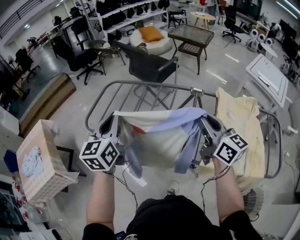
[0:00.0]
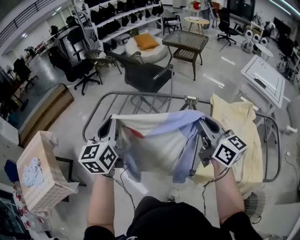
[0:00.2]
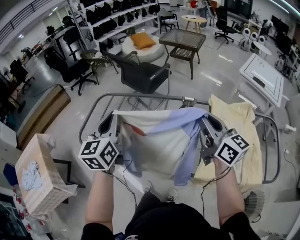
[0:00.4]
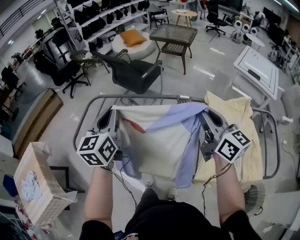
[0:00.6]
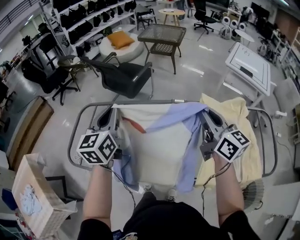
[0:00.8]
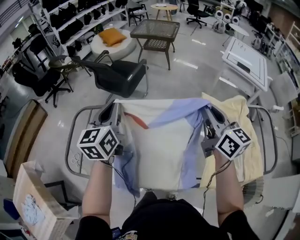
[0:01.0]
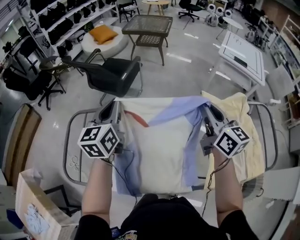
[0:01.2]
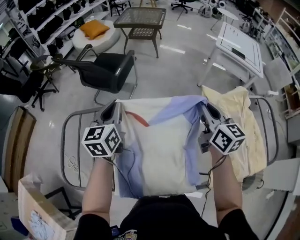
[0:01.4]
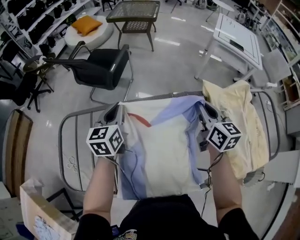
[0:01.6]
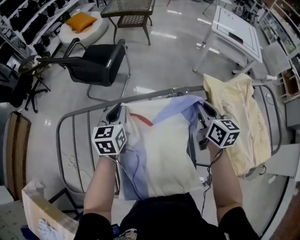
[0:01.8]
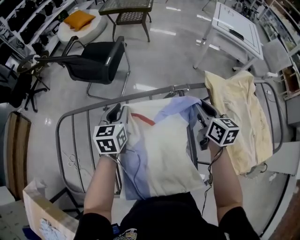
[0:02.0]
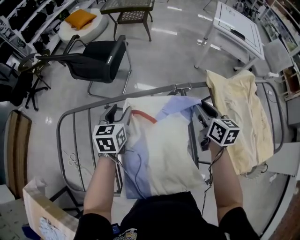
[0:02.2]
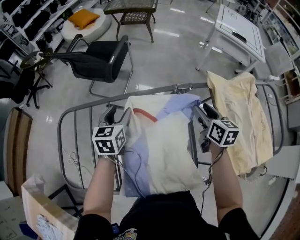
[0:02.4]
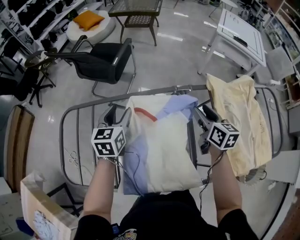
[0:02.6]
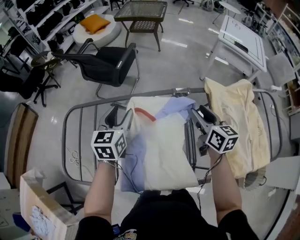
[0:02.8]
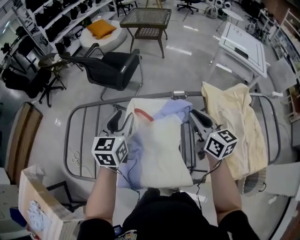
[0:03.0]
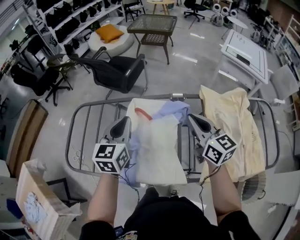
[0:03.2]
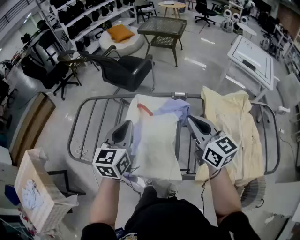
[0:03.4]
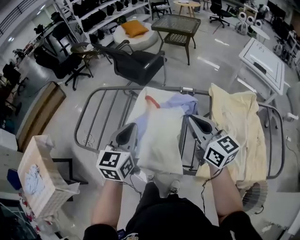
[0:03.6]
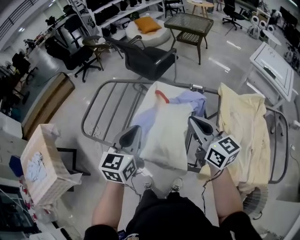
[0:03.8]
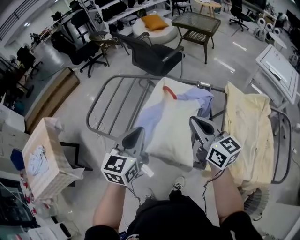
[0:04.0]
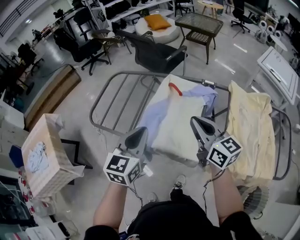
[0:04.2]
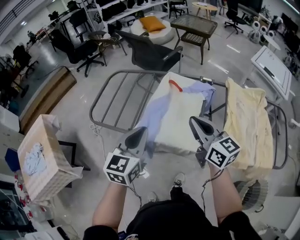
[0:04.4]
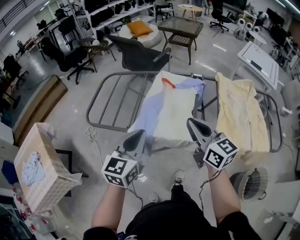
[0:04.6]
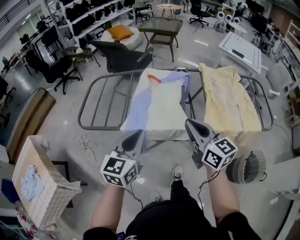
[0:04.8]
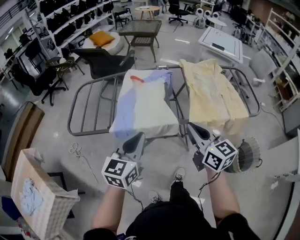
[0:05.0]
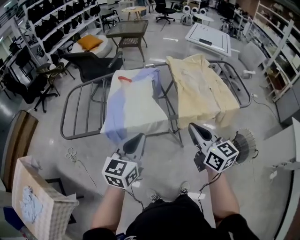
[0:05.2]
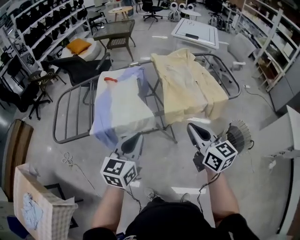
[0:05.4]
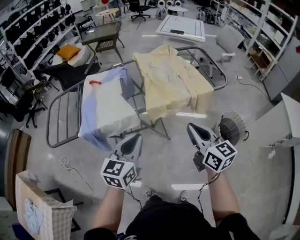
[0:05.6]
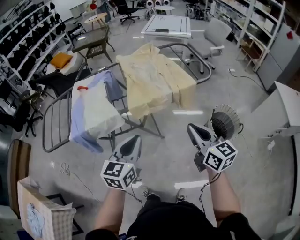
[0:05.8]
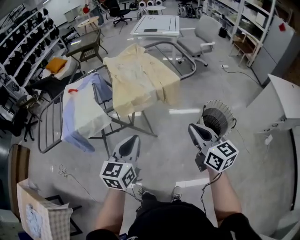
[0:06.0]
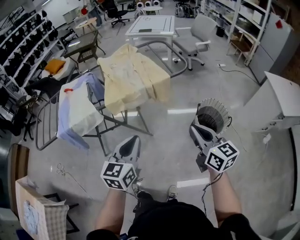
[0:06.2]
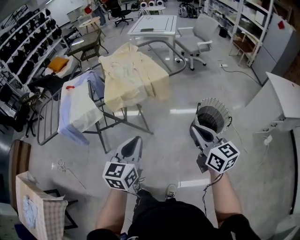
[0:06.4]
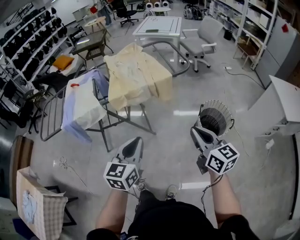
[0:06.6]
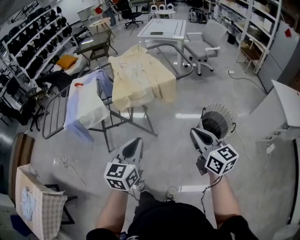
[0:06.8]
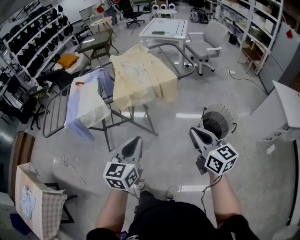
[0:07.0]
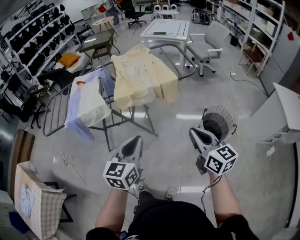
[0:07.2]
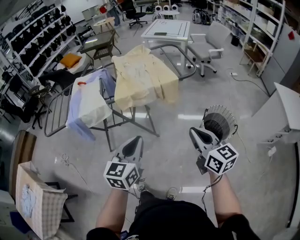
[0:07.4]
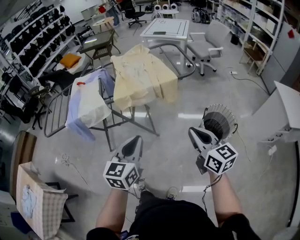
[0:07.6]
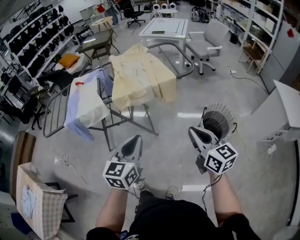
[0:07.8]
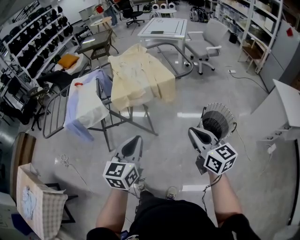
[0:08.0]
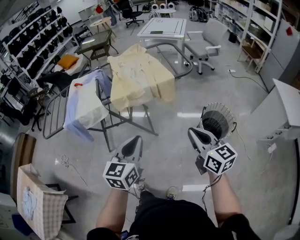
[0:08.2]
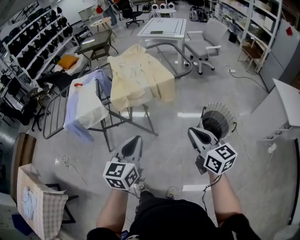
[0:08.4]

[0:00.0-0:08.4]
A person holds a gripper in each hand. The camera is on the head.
0:00.0 to 0:01.4: The right gripper moves approximately 25 cm, and turns by about 30 degrees. Meanwhile the left gripper ends up some 35 cm from where it was, and changes its angle by some 30 degrees.
0:01.4 to 0:02.8: The left gripper moves downward, roughly 5 cm, and opens. The right gripper moves downward, approximately 10 cm, and opens its fingers.
0:02.8 to 0:04.2: The left gripper travels backward by about 30 cm, and closes its fingers, while the right gripper moves backward, to the left and upward, about 25 cm, rotates roughly 40 degrees, and closes its fingers.
0:04.2 to 0:05.6: The right gripper shifts by about 40 cm, and changes its angle by some 40 degrees. Meanwhile the left gripper ends up about 30 cm from where it was, and swivels approximately 40 degrees.
0:05.6 to 0:07.0: The grippers both shift to the right and backward by some 30 cm.
0:07.0 to 0:08.4: The grippers make only small movements.

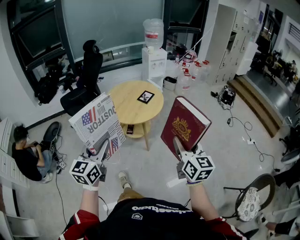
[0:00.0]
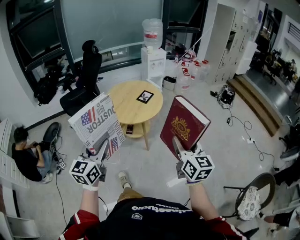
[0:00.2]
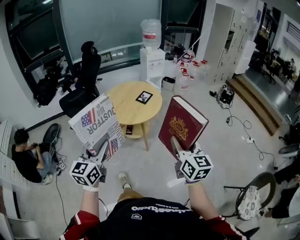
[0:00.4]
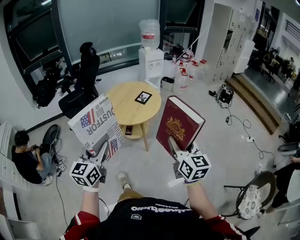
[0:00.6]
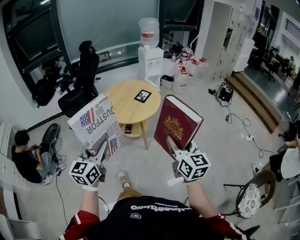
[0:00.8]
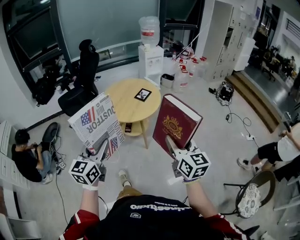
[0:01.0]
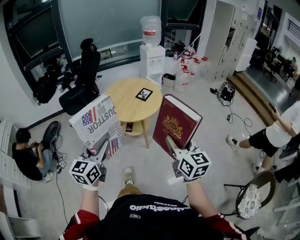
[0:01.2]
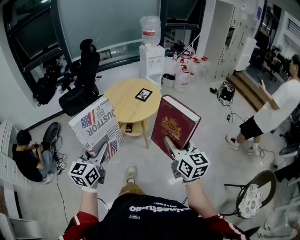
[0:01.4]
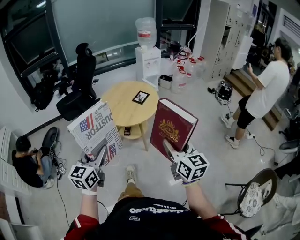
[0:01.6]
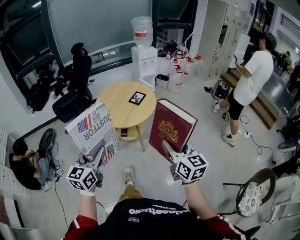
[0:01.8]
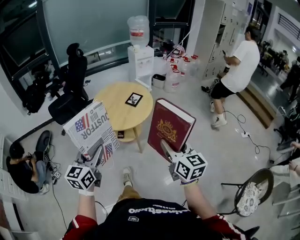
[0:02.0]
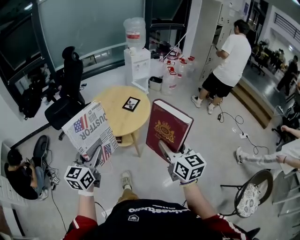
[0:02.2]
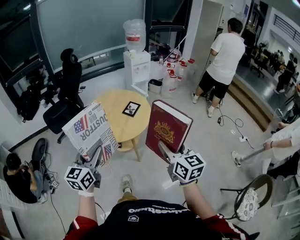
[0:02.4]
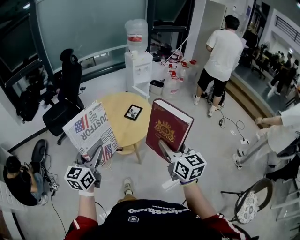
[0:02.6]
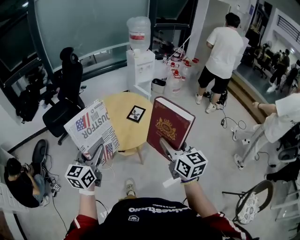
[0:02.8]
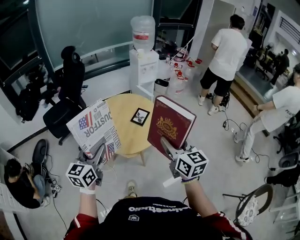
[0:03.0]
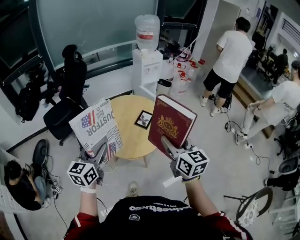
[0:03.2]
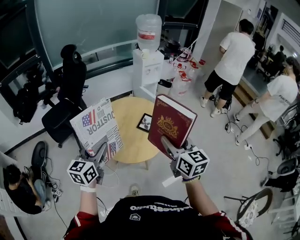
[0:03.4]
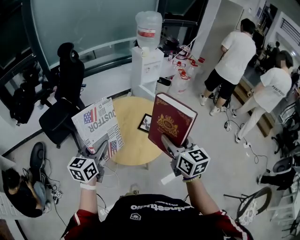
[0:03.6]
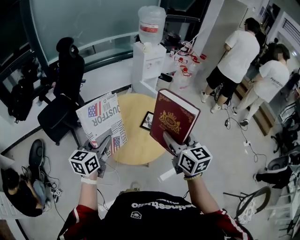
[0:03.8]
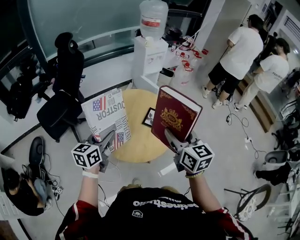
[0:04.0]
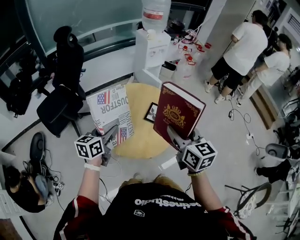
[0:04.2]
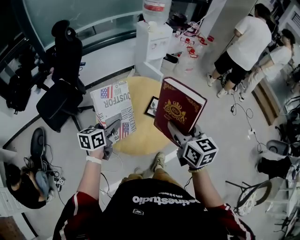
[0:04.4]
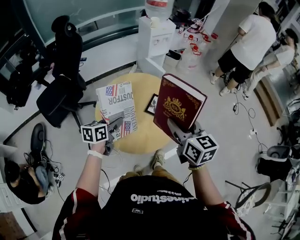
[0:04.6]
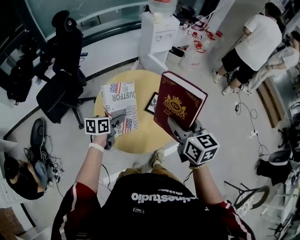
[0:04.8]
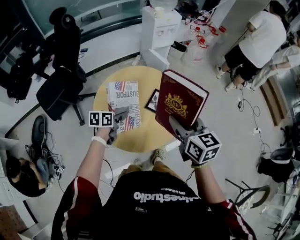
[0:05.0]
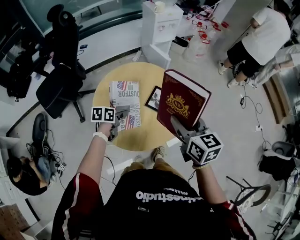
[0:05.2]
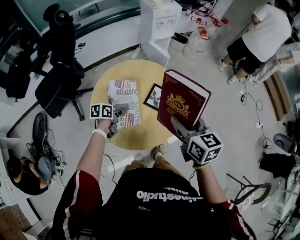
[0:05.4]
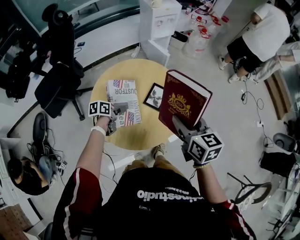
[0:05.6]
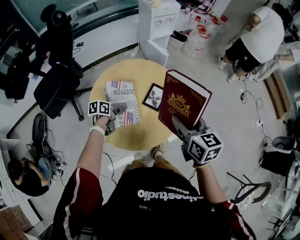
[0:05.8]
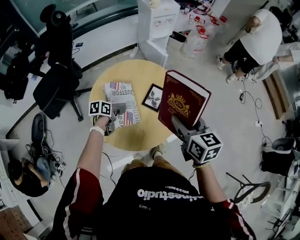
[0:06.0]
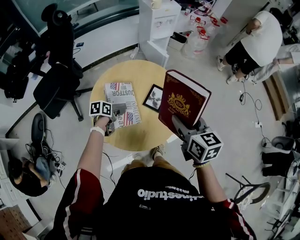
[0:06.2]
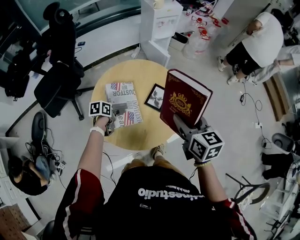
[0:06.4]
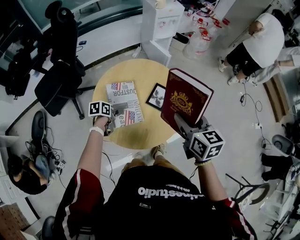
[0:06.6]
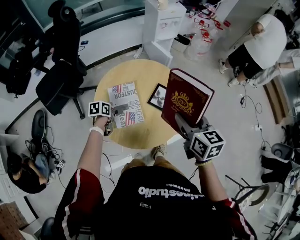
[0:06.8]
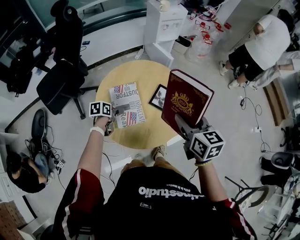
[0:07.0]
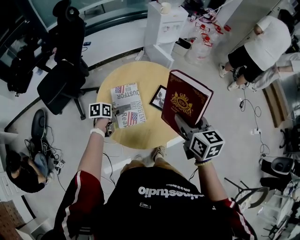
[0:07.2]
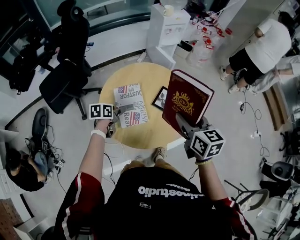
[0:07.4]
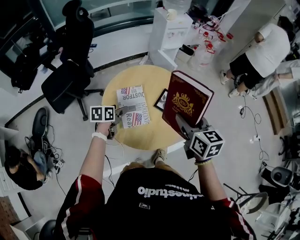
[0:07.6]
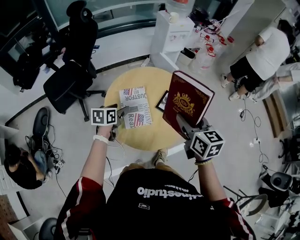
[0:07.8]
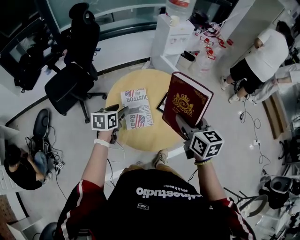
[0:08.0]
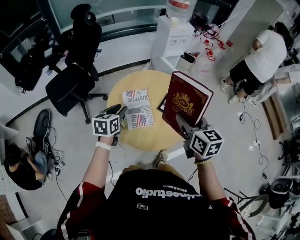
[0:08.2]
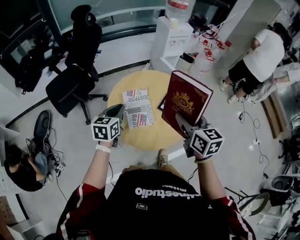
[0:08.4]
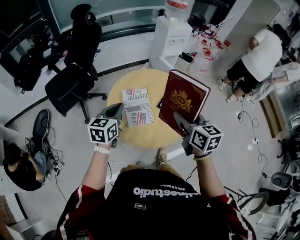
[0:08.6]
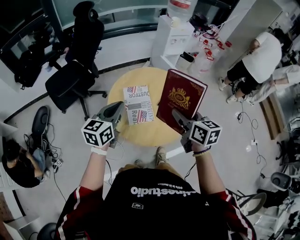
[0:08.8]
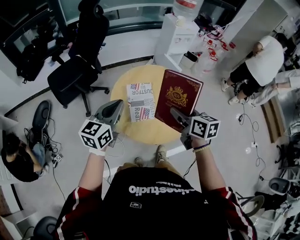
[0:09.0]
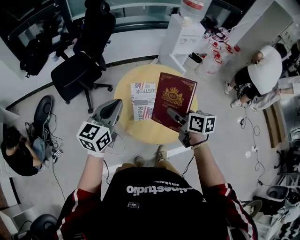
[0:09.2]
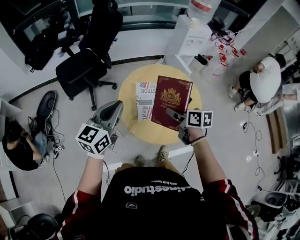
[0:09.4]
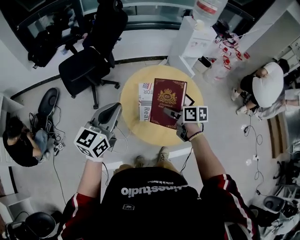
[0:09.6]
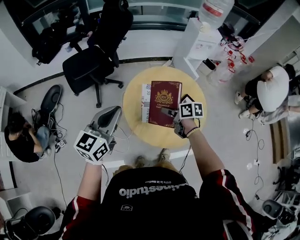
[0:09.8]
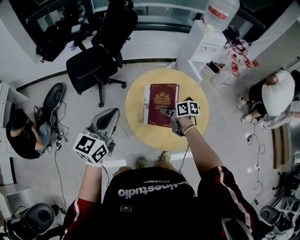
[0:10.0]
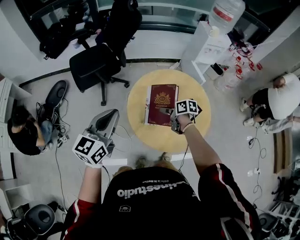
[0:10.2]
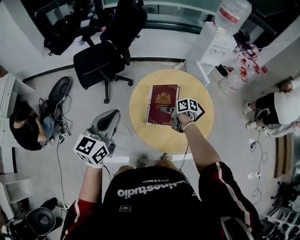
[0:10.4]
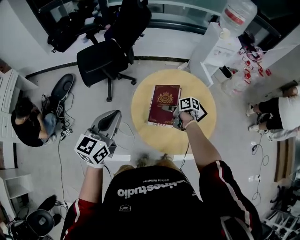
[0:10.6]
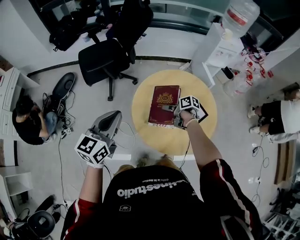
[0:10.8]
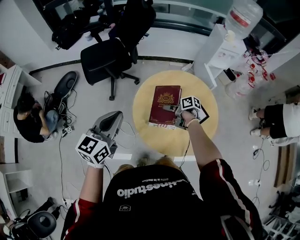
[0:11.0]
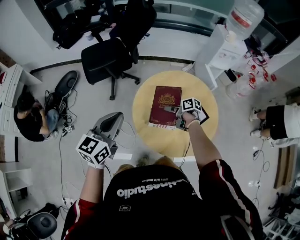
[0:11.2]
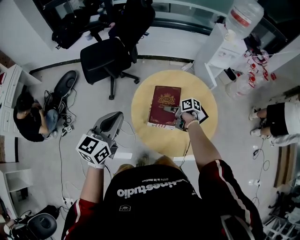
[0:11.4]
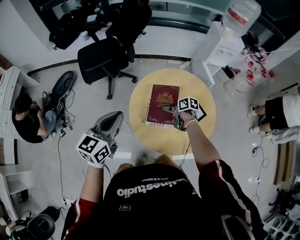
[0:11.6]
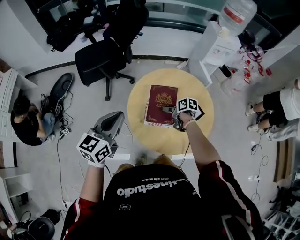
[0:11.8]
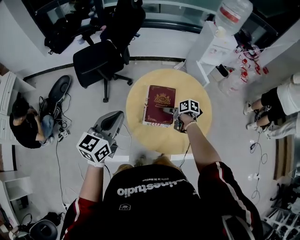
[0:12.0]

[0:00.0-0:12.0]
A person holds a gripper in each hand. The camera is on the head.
0:00.0 to 0:01.6: The grippers stay close to where they were, moving slightly.
0:01.6 to 0:03.0: Both grippers move forward, some 25 cm.
0:03.0 to 0:04.4: The left gripper heads forward and downward, covering about 30 cm, and swivels roughly 30 degrees. The right gripper goes approximately 20 cm forward and to the left.
0:04.4 to 0:06.0: The right gripper goes about 10 cm downward and forward, while the left gripper travels downward and forward by roughly 25 cm, and swivels some 30 degrees.
0:06.0 to 0:07.6: The left gripper moves upward and to the left, roughly 10 cm. The right gripper travels to the left by roughly 5 cm.
0:07.6 to 0:09.0: The left gripper heads upward and backward, covering approximately 25 cm, points its fingers some 30 degrees further upward, and closes up. Meanwhile the right gripper goes approximately 5 cm to the left.
0:09.0 to 0:10.4: The left gripper moves approximately 10 cm, while the right gripper goes some 20 cm downward, and swivels about 40 degrees.
0:10.4 to 0:12.0: The right gripper shifts approximately 5 cm to the right, and opens up.

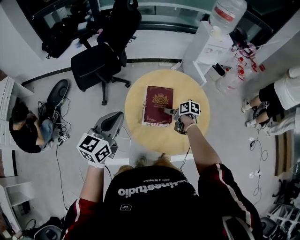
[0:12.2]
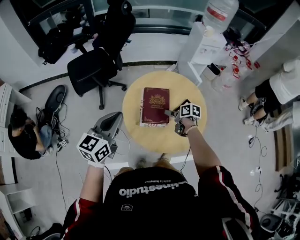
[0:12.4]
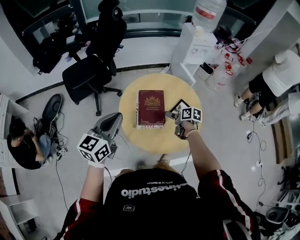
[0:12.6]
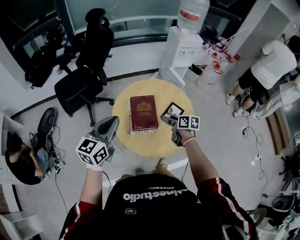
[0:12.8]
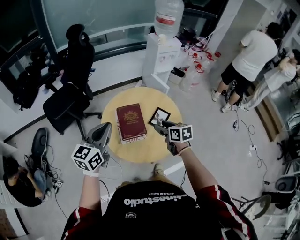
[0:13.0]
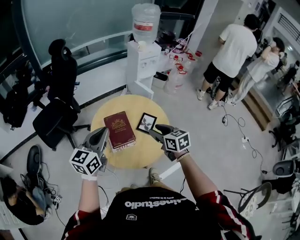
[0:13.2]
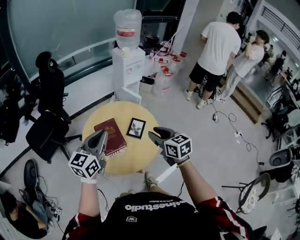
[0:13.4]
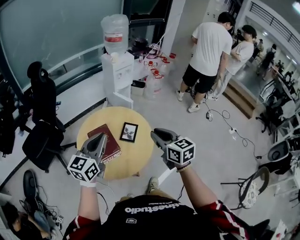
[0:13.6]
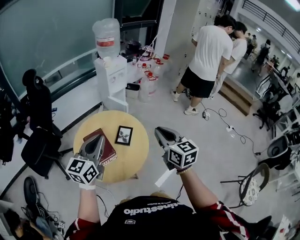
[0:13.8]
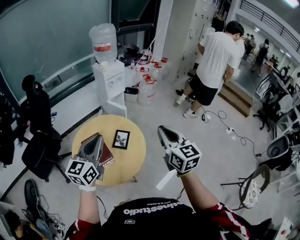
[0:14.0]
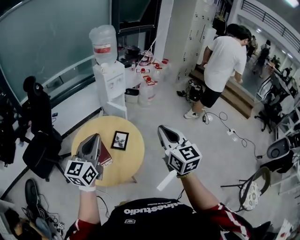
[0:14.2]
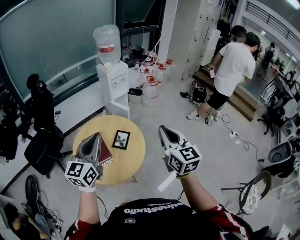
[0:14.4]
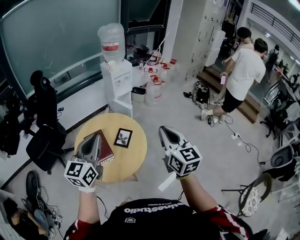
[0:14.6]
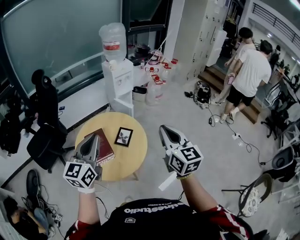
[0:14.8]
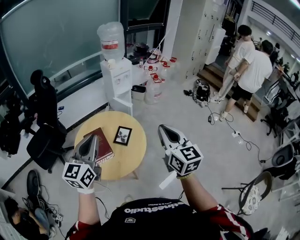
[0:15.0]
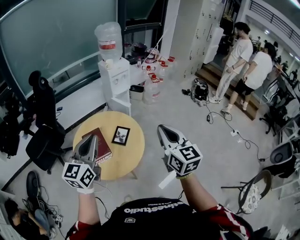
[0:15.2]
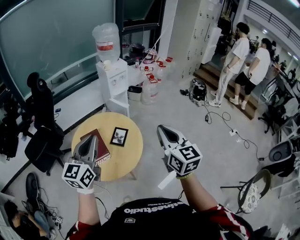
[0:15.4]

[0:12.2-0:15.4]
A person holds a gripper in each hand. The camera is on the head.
0:12.2 to 0:13.8: The left gripper changes place by about 25 cm, and changes its angle by some 30 degrees; the right gripper shifts some 35 cm upward, tips its fingers upward by approximately 40 degrees, and closes.
0:13.8 to 0:15.4: The left gripper heads upward, covering approximately 5 cm. Meanwhile the right gripper travels upward and to the right by some 10 cm.
